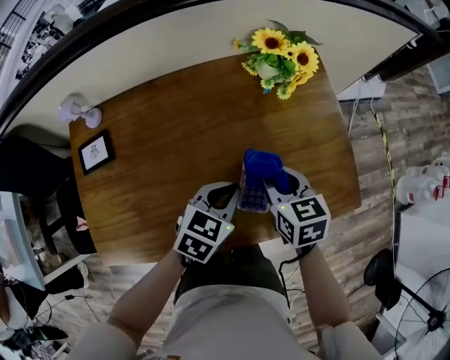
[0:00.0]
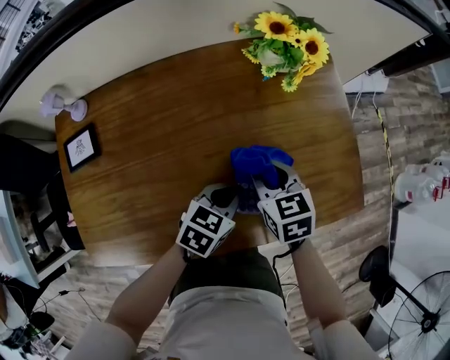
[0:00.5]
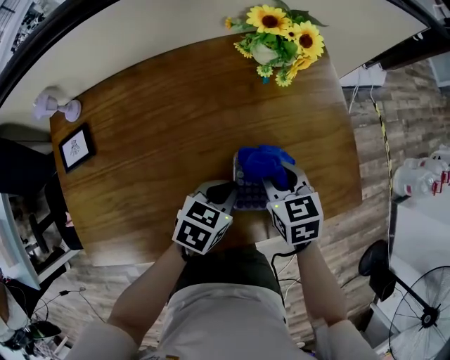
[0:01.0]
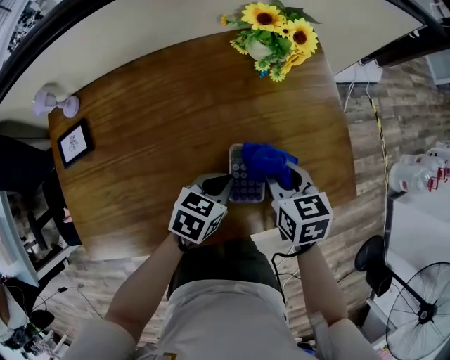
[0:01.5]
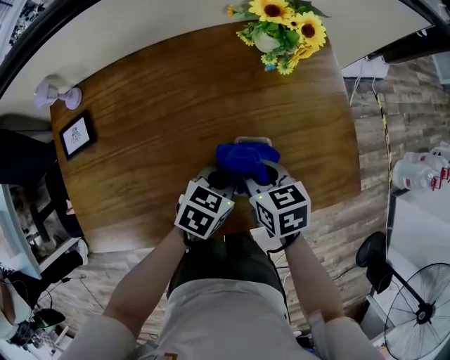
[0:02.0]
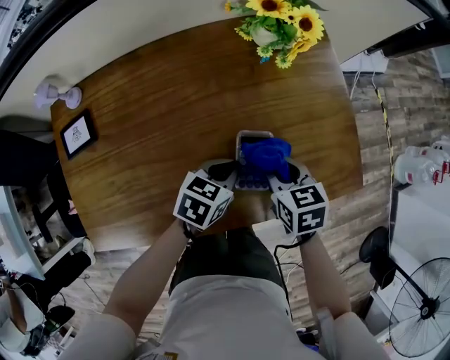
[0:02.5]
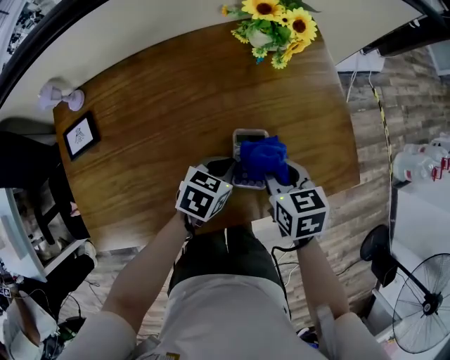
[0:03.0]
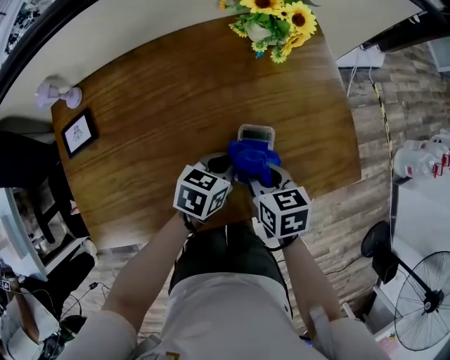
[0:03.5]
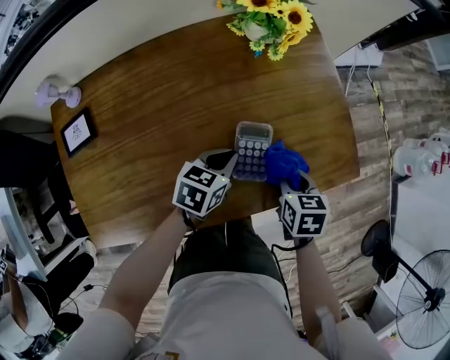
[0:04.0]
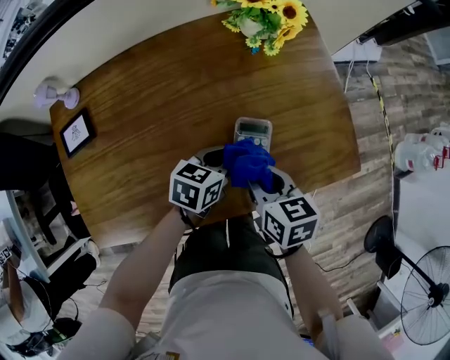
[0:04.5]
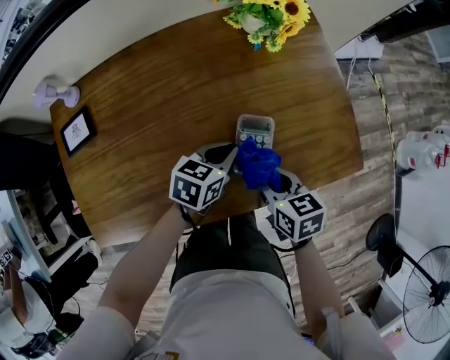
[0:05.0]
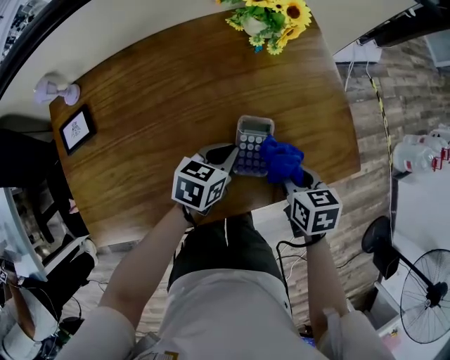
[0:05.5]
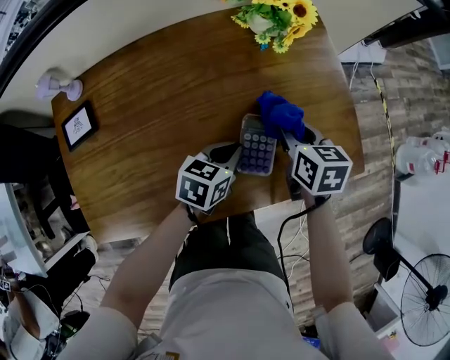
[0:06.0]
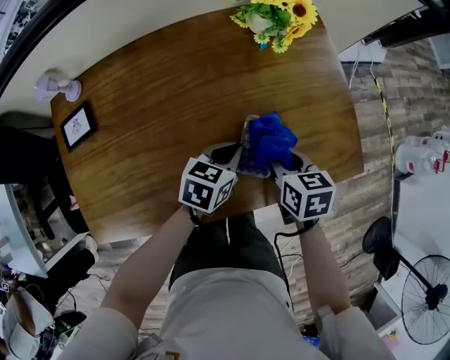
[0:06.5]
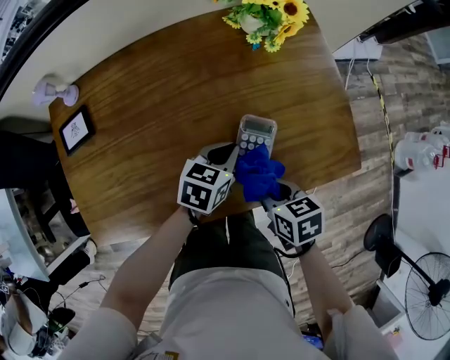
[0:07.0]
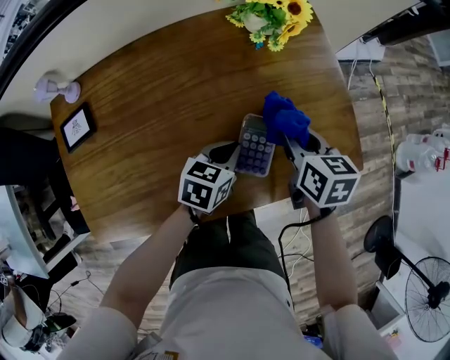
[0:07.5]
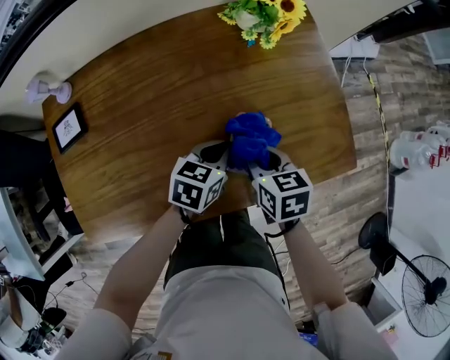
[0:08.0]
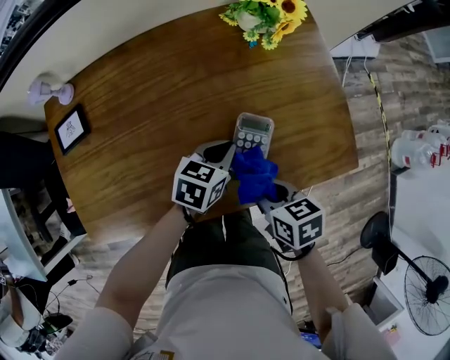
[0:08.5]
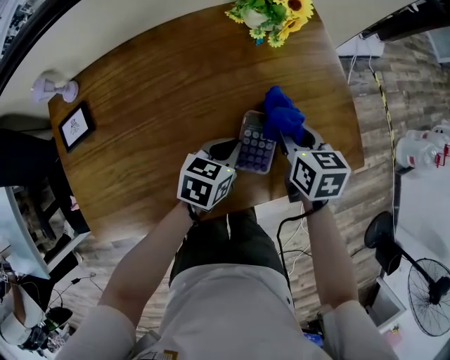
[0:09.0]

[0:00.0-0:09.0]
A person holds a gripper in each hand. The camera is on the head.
0:00.0 to 0:02.0: Both grippers travel together downward, roughly 5 cm.
0:02.0 to 0:04.5: The right gripper goes to the right and returns, roughly 15 cm each way.
0:04.5 to 0:07.0: The right gripper moves roughly 10 cm forward and comes back.
0:07.0 to 0:09.0: The right gripper goes forward and backward, approximately 15 cm each way, reversing 2 times, and rotates roughly 20 degrees.

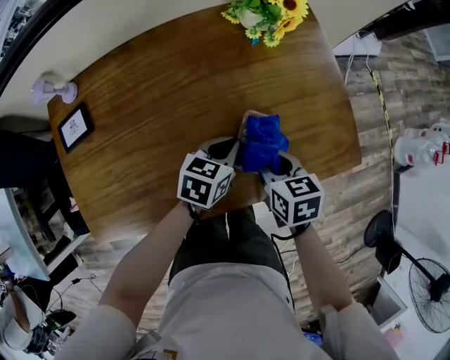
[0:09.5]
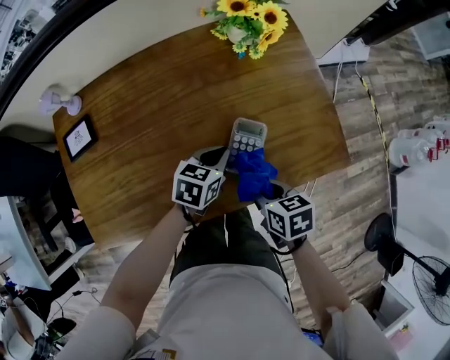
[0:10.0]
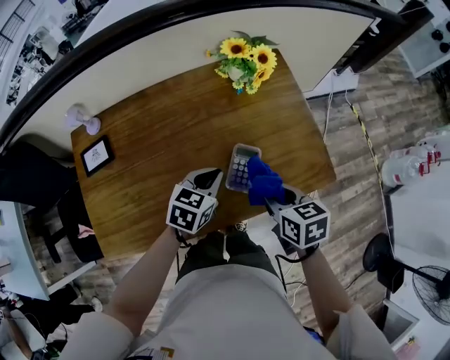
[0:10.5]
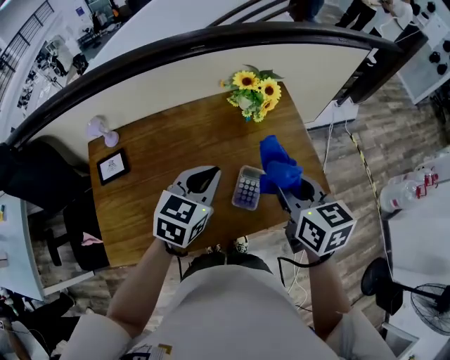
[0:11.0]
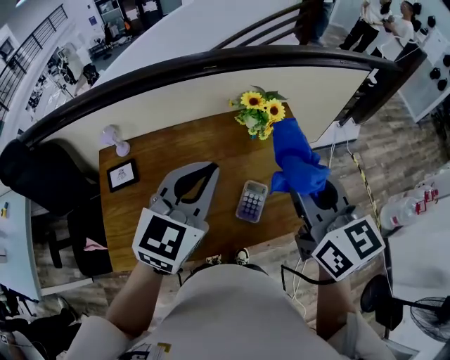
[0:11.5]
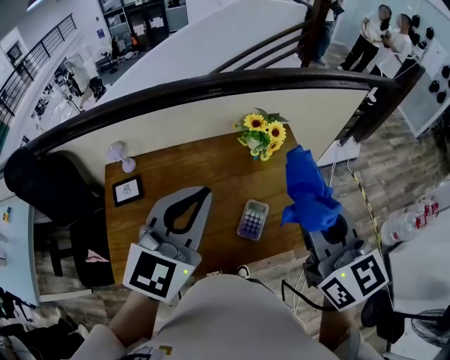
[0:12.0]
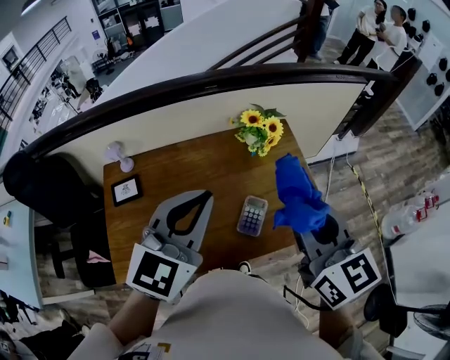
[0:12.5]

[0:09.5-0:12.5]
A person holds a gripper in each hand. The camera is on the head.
0:09.5 to 0:11.0: Both grippers travel together upward, some 25 cm. The left gripper swivels about 30 degrees; the right gripper changes its angle by approximately 20 degrees.
0:11.0 to 0:12.5: Both grippers travel together upward, approximately 20 cm. The left gripper changes its angle by about 20 degrees.

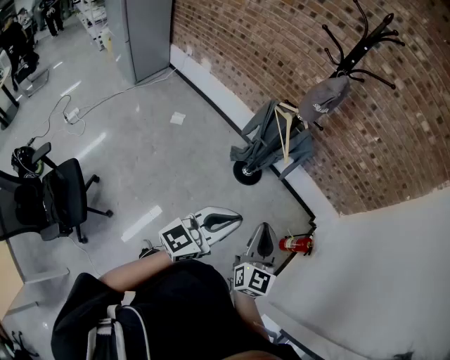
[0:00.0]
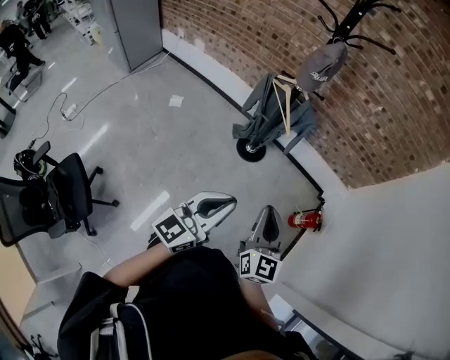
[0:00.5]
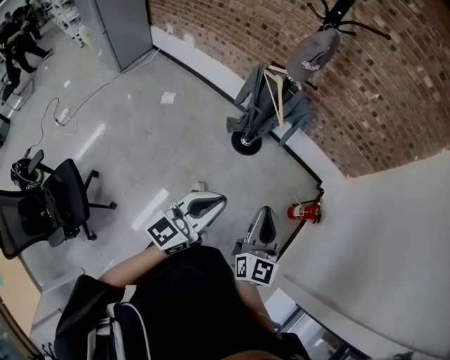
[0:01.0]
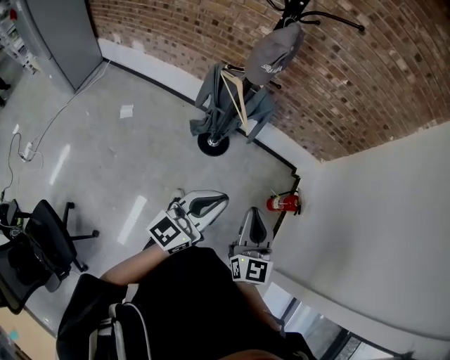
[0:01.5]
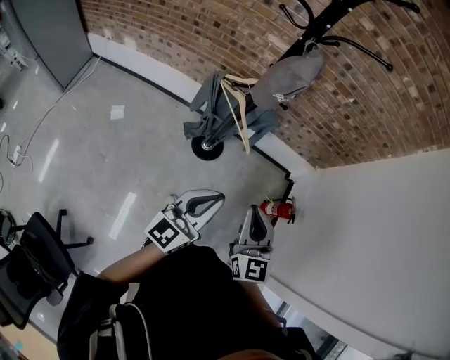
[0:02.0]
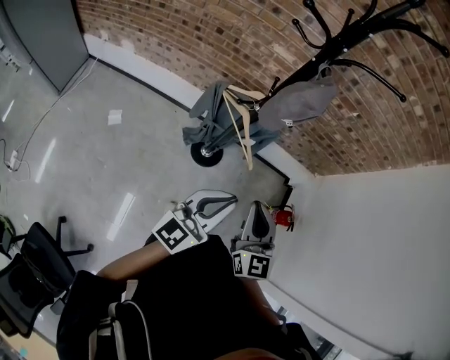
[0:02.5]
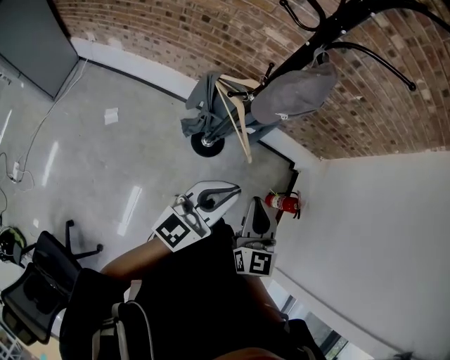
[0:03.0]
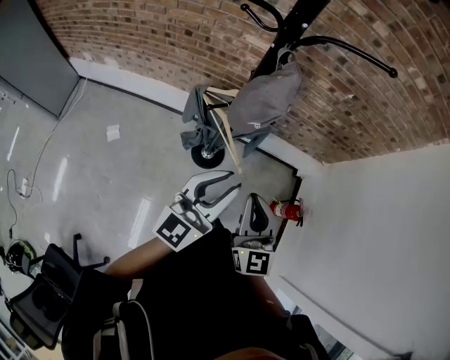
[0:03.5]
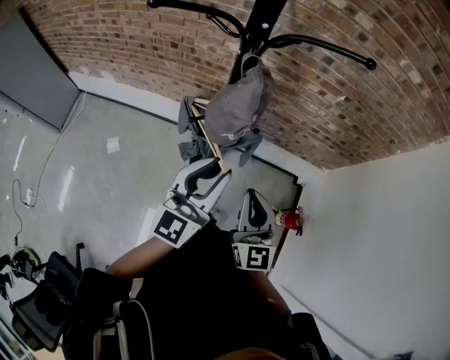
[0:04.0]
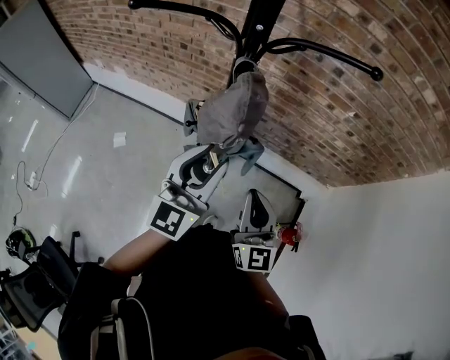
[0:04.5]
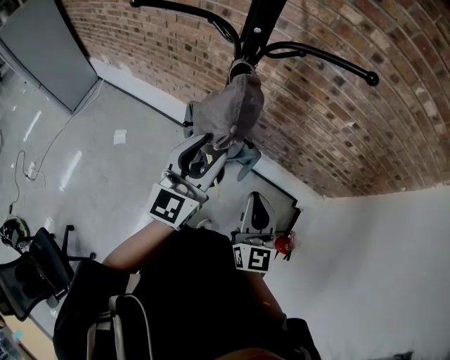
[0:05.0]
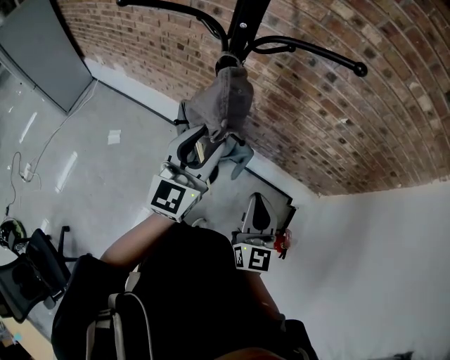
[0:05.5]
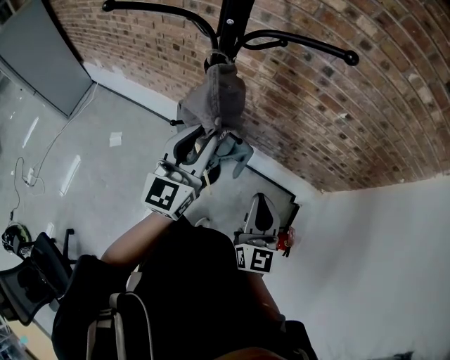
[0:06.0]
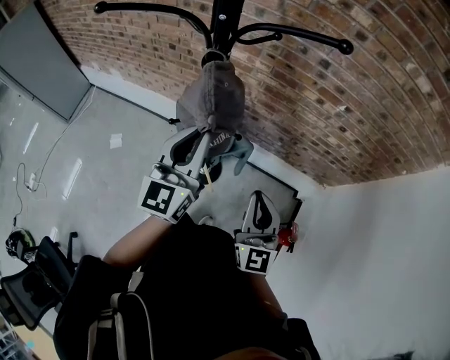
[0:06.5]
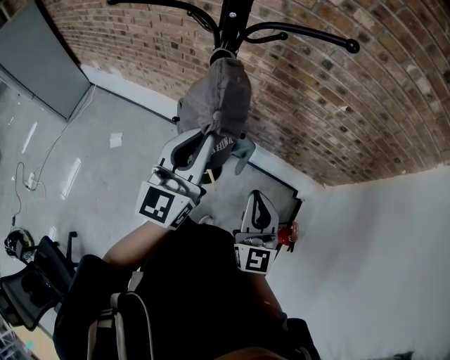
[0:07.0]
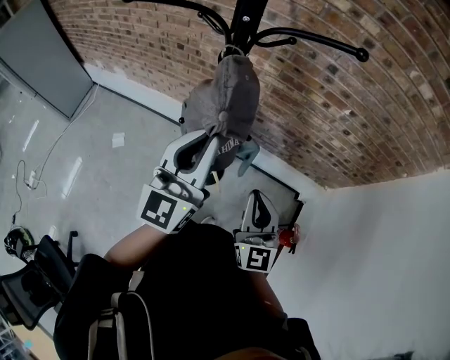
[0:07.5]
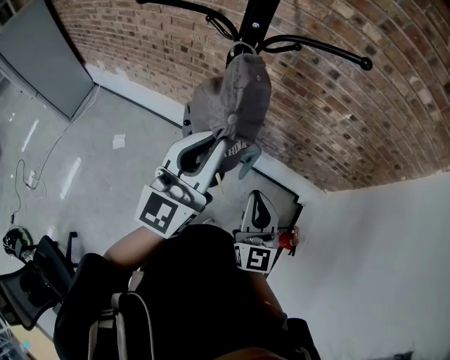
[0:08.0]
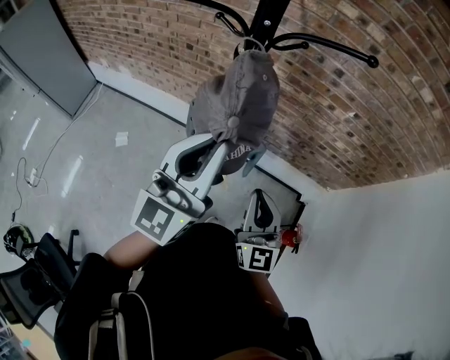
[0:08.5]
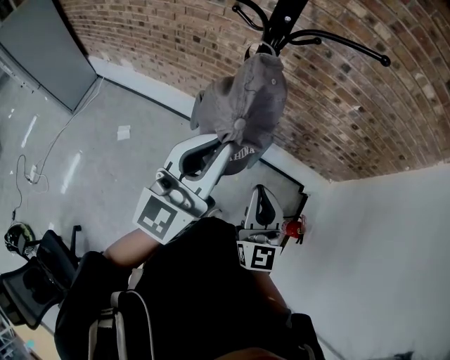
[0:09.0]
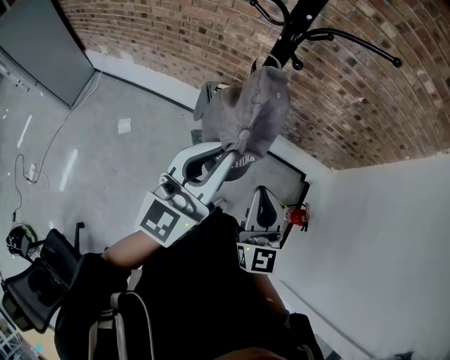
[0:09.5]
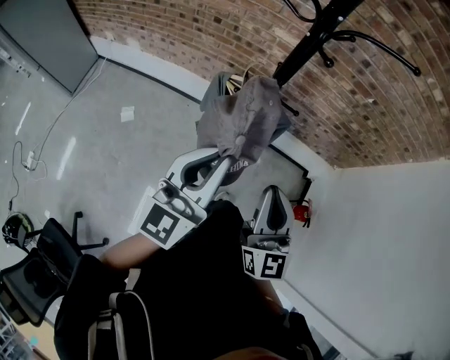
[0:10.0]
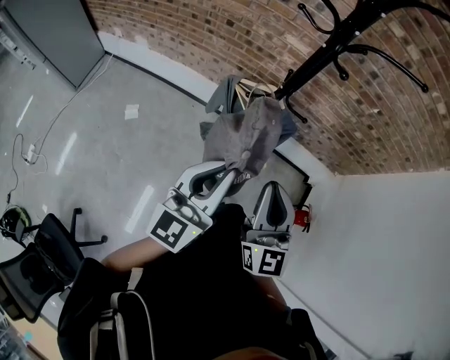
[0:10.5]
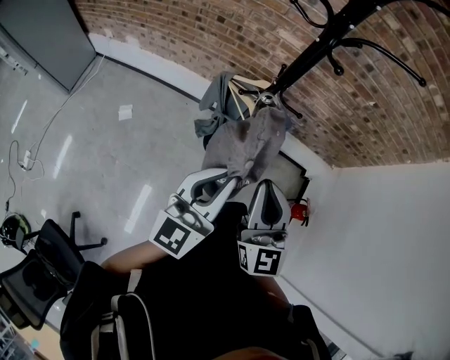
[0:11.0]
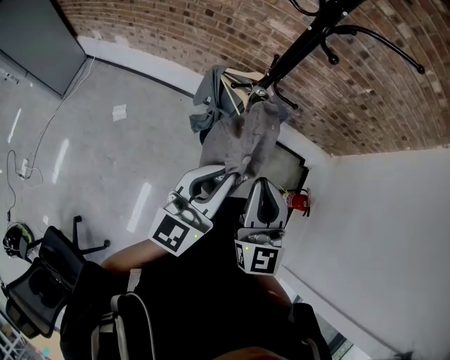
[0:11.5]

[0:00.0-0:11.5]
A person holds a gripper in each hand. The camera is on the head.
0:00.0 to 0:02.0: Both grippers move forward, about 20 cm.
0:02.0 to 0:04.0: The grippers both shift forward by some 25 cm. The left gripper opens.
0:04.0 to 0:06.0: The right gripper travels to the right and forward by approximately 10 cm, while the left gripper goes roughly 10 cm forward.
0:06.0 to 0:07.5: The left gripper travels upward by roughly 5 cm.
0:07.5 to 0:09.5: The left gripper heads backward and to the left, covering approximately 15 cm. The right gripper shifts approximately 15 cm to the left and backward.
0:09.5 to 0:11.5: The left gripper shifts some 10 cm downward and backward; the right gripper heads to the left, covering some 5 cm.

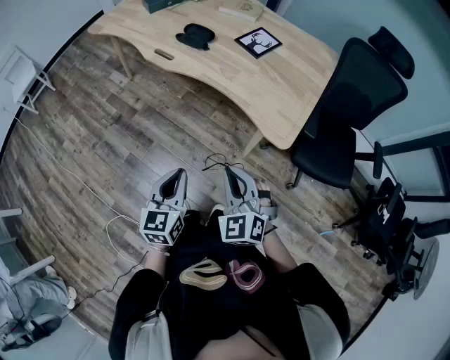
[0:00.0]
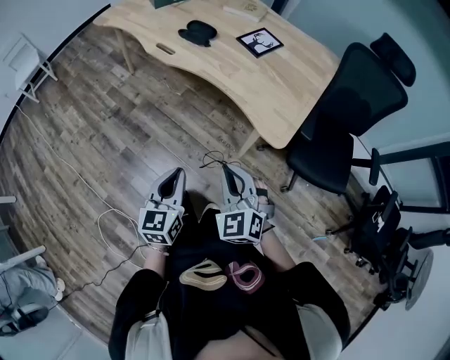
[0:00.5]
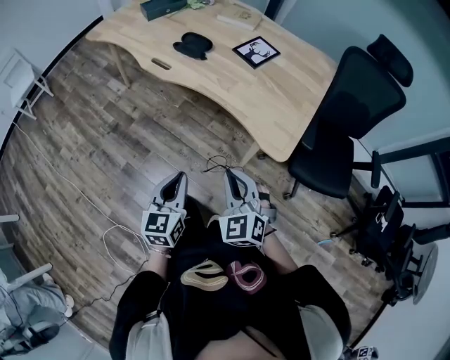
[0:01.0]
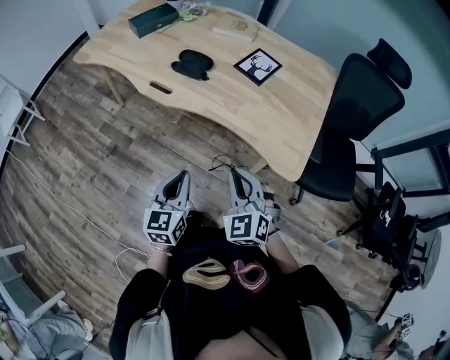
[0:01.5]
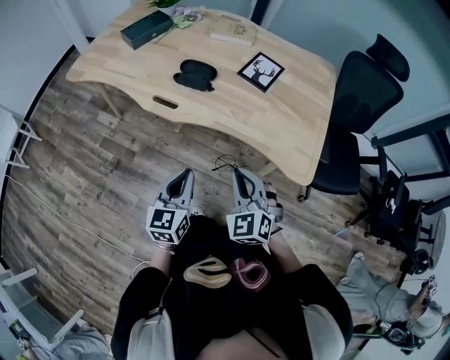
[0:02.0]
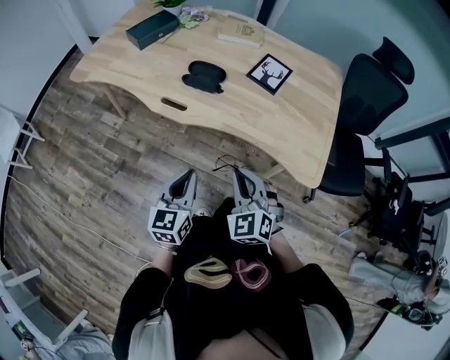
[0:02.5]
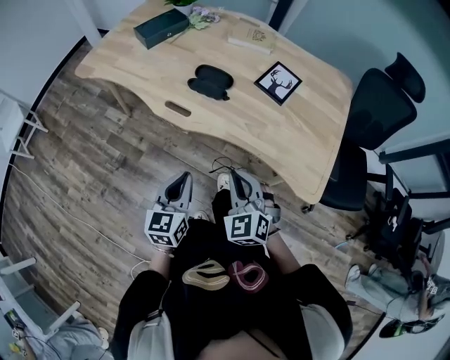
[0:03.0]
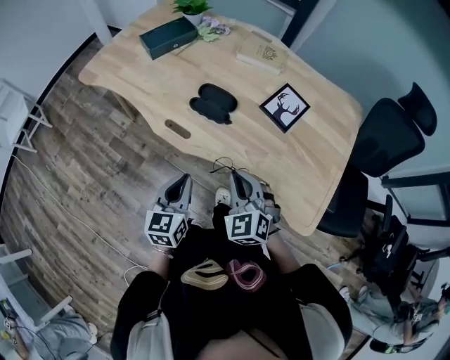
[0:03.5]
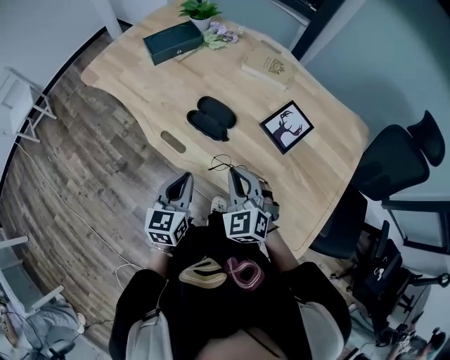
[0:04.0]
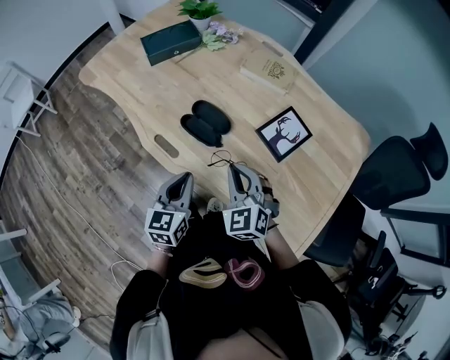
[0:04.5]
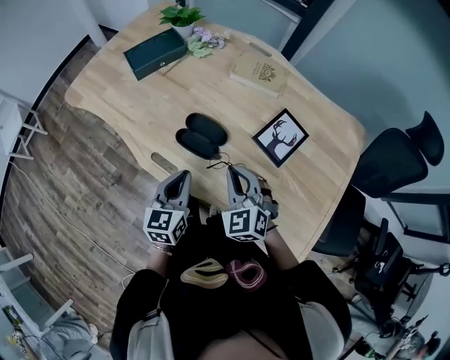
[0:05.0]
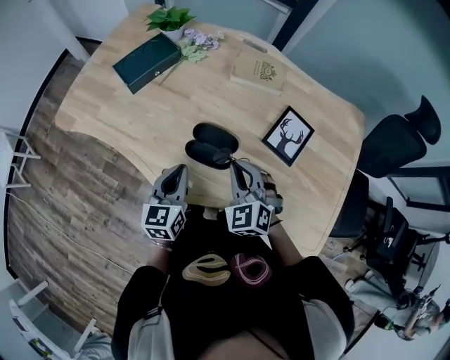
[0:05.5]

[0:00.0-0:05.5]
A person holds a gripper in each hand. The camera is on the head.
0:00.0 to 0:02.0: Both grippers move forward and to the left, approximately 25 cm.
0:02.0 to 0:03.5: Both grippers travel together forward, about 15 cm.
0:03.5 to 0:05.5: Both grippers move forward, some 25 cm.
